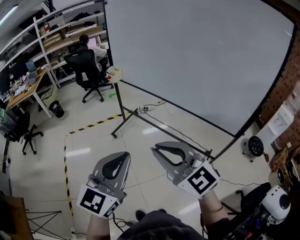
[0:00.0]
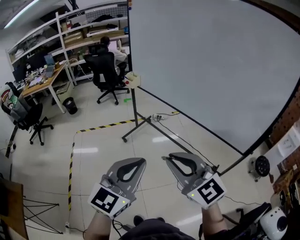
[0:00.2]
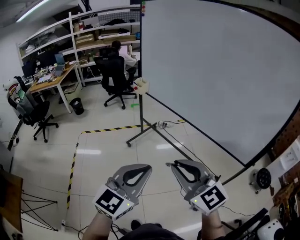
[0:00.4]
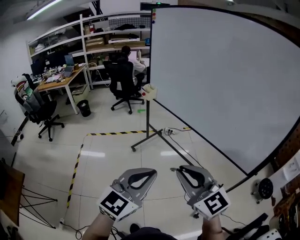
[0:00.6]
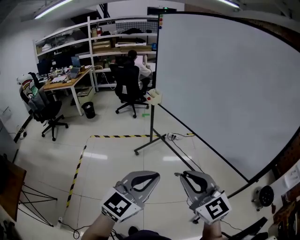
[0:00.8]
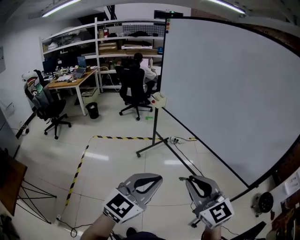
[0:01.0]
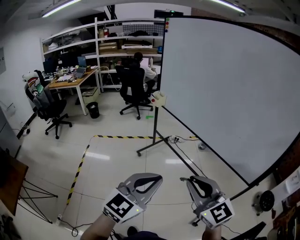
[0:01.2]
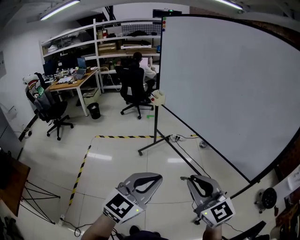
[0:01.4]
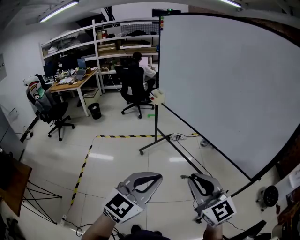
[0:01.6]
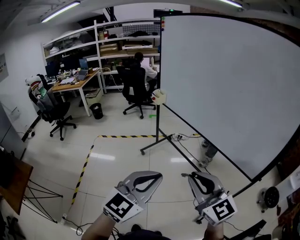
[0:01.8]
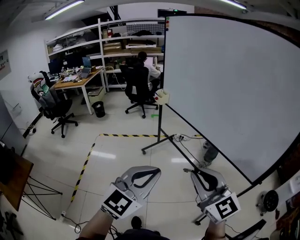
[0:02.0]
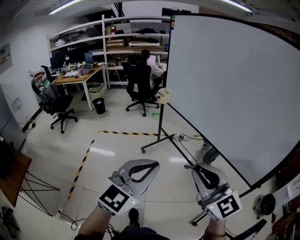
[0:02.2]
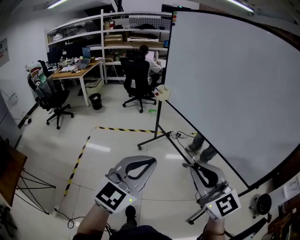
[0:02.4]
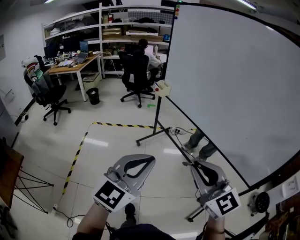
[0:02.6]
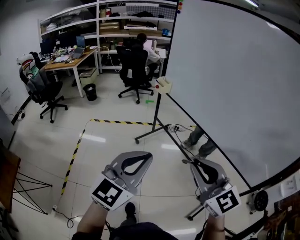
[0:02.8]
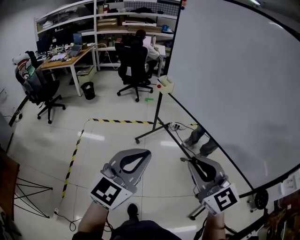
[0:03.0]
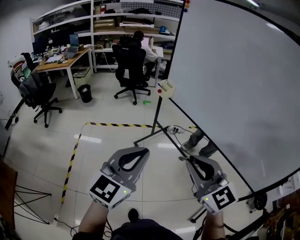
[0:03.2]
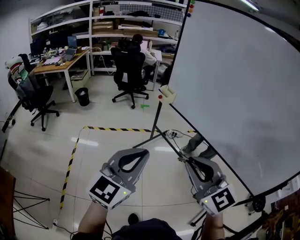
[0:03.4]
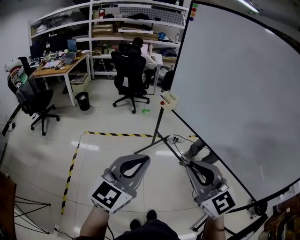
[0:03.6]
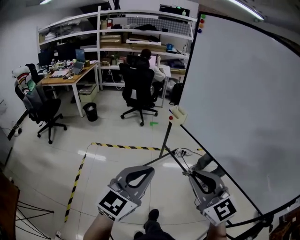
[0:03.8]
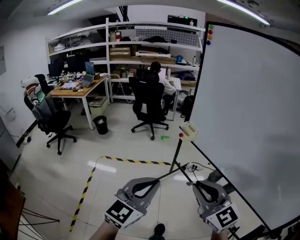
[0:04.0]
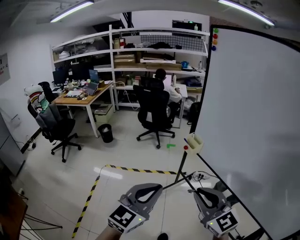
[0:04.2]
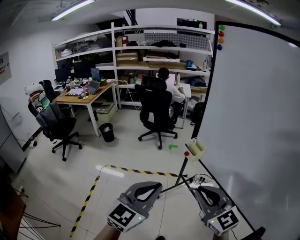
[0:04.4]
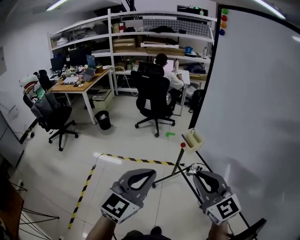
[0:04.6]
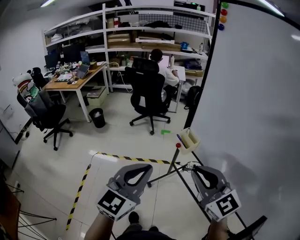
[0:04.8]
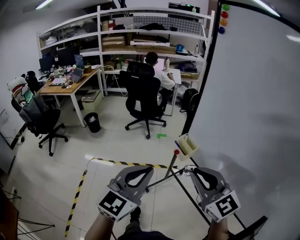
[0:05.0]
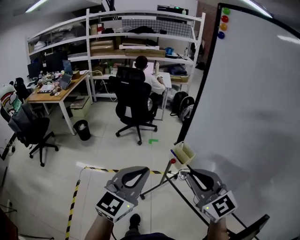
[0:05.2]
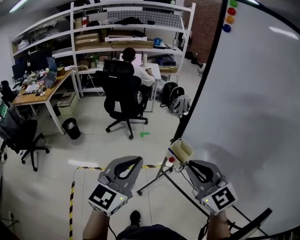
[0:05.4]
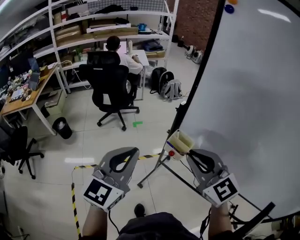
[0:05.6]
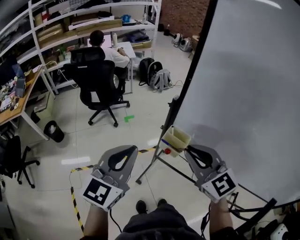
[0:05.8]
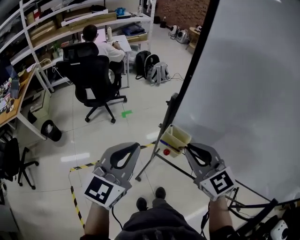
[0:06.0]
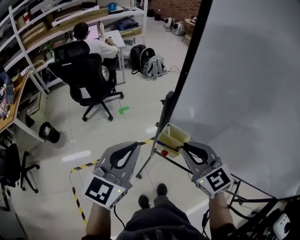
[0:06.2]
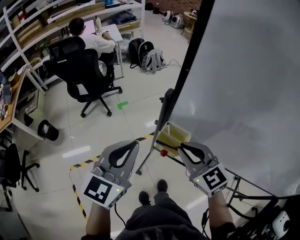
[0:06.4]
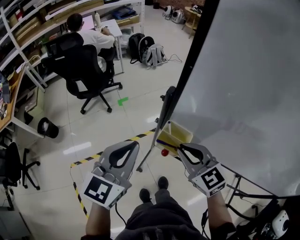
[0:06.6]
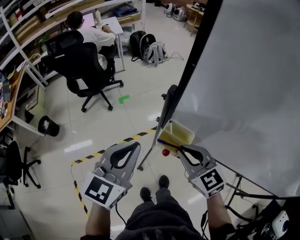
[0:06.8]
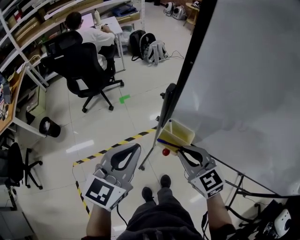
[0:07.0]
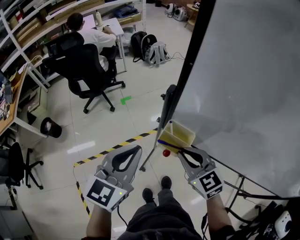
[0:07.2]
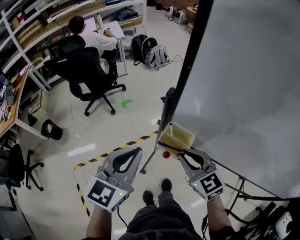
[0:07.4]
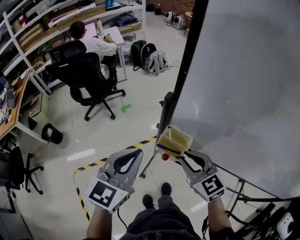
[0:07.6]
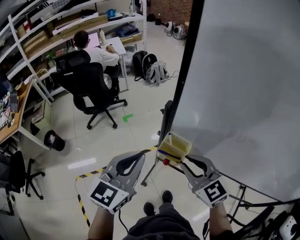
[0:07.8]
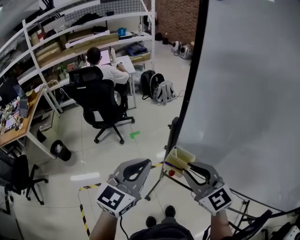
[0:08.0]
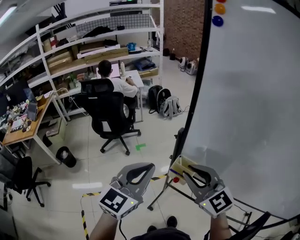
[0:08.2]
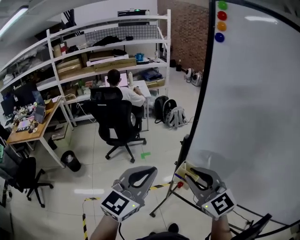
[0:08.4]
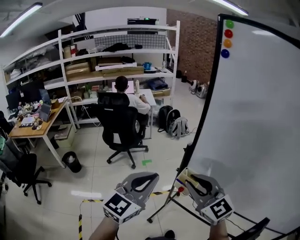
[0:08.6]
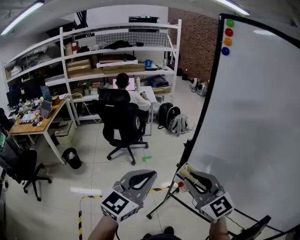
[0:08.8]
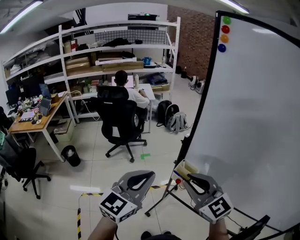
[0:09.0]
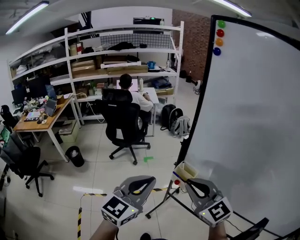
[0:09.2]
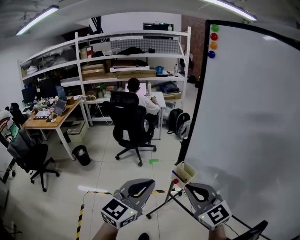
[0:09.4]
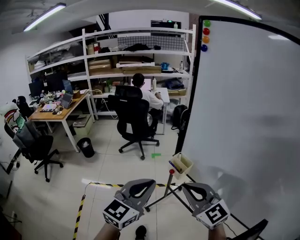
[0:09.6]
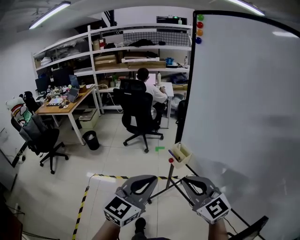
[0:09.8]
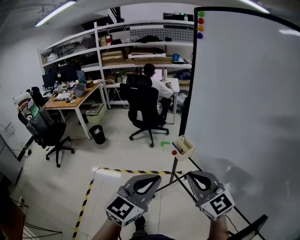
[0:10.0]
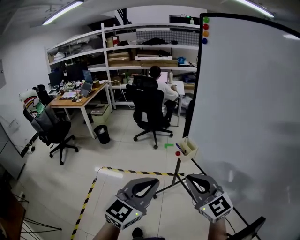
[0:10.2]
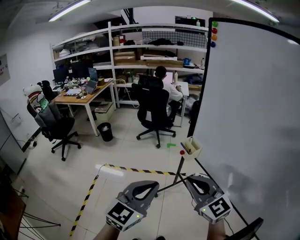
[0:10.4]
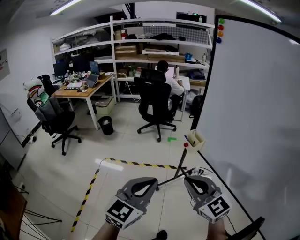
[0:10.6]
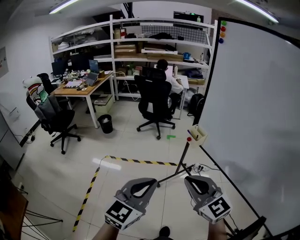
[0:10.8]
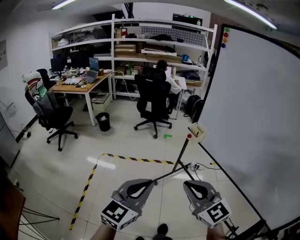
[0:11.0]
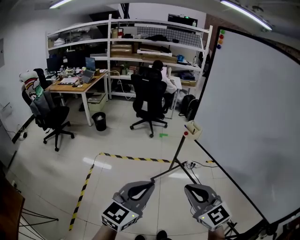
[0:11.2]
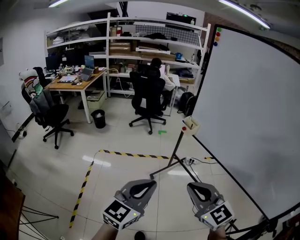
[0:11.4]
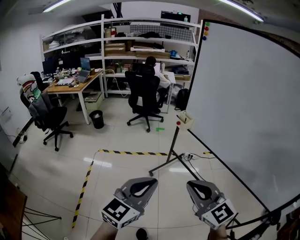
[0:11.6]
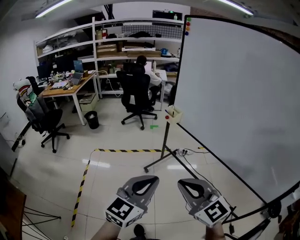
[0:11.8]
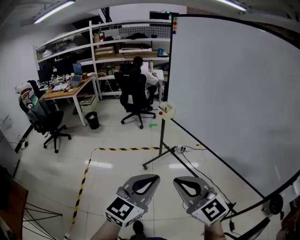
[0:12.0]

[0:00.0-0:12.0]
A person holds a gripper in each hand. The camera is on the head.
0:00.0 to 0:01.6: The left gripper shifts by about 5 cm. The right gripper heads to the right, covering roughly 5 cm.
0:01.6 to 0:03.0: Both grippers move forward and to the left, approximately 20 cm.
0:03.0 to 0:04.4: Both grippers move forward, approximately 35 cm.
0:04.4 to 0:06.0: The grippers both shift forward by some 35 cm. The right gripper rotates some 20 degrees, while the left gripper rotates approximately 20 degrees.
0:06.0 to 0:07.6: The left gripper travels downward by some 5 cm. Meanwhile the right gripper shifts about 10 cm downward.
0:07.6 to 0:09.0: The left gripper goes some 15 cm backward and upward. The right gripper goes some 25 cm upward, backward and to the left, and changes its angle by approximately 30 degrees.
0:09.0 to 0:10.4: Both grippers move backward, roughly 25 cm. The left gripper swivels roughly 20 degrees.
0:10.4 to 0:12.0: Both grippers travel together backward, some 35 cm.

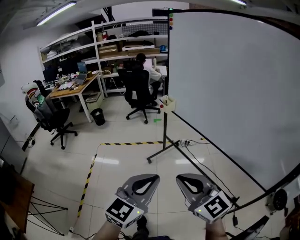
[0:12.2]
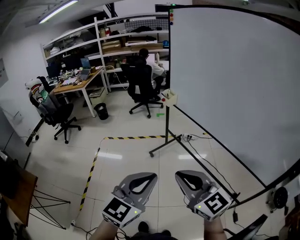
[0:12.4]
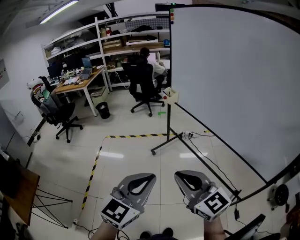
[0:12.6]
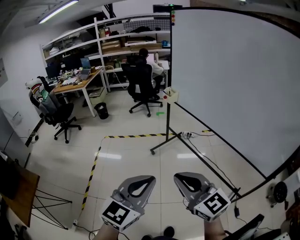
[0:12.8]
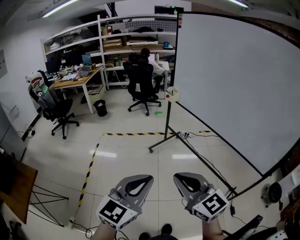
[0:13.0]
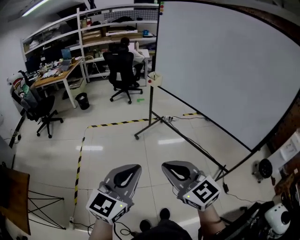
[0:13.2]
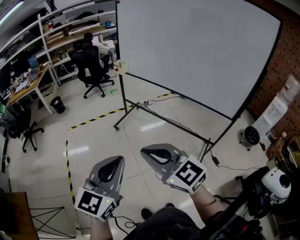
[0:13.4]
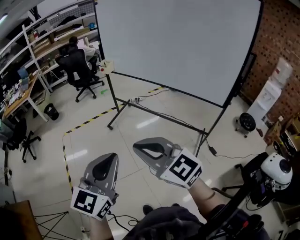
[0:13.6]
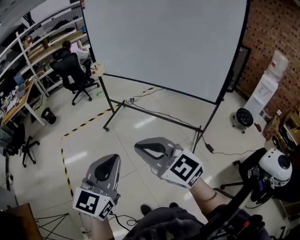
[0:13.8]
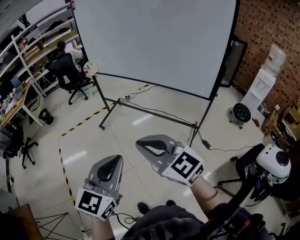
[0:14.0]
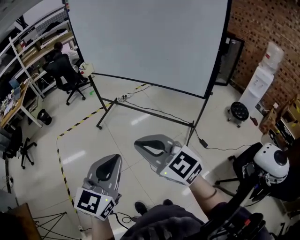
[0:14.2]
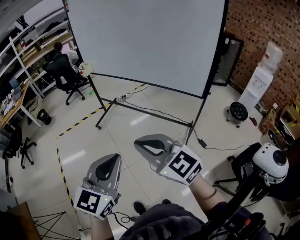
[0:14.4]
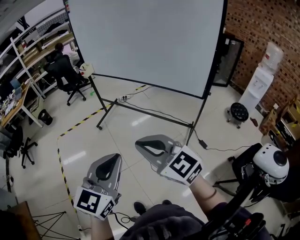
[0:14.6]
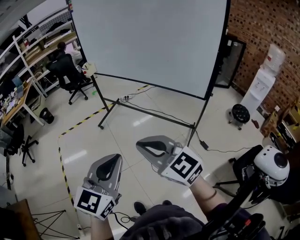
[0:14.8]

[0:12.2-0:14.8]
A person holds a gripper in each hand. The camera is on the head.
0:12.2 to 0:13.4: The two grippers go some 20 cm backward and to the left.
0:13.4 to 0:14.8: Both grippers move to the right, some 20 cm.

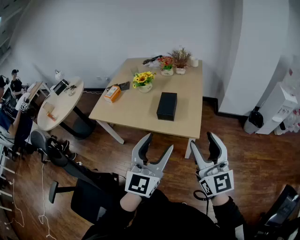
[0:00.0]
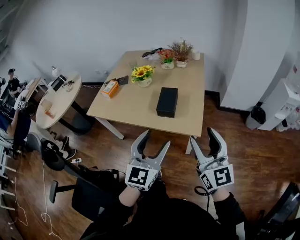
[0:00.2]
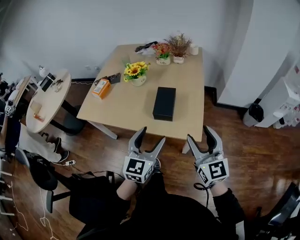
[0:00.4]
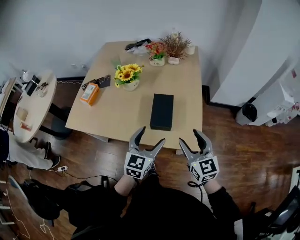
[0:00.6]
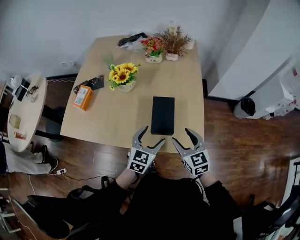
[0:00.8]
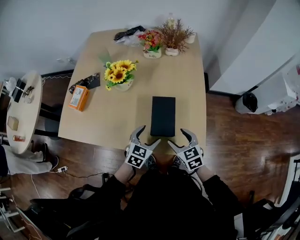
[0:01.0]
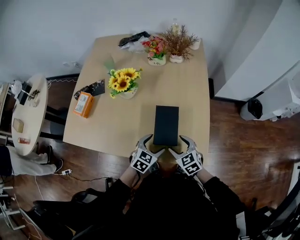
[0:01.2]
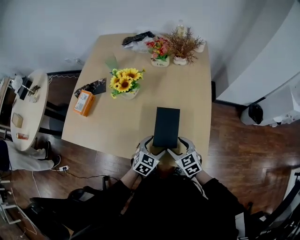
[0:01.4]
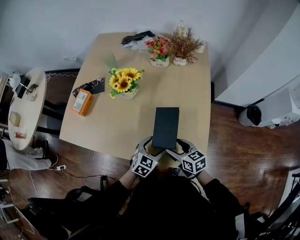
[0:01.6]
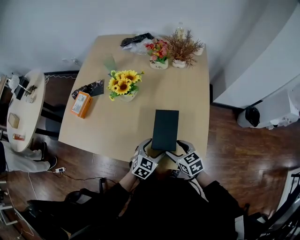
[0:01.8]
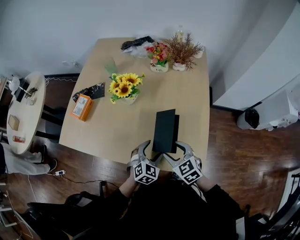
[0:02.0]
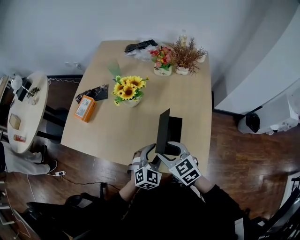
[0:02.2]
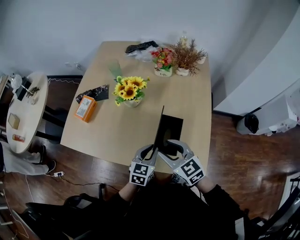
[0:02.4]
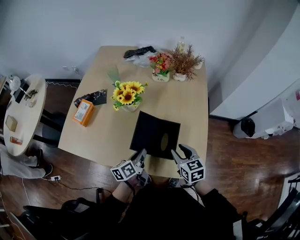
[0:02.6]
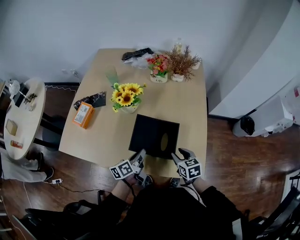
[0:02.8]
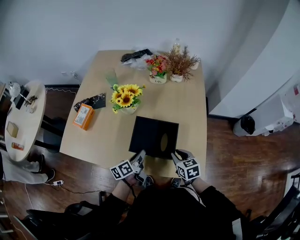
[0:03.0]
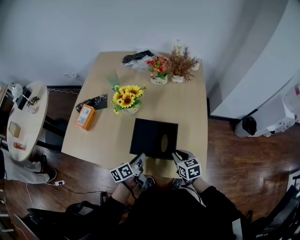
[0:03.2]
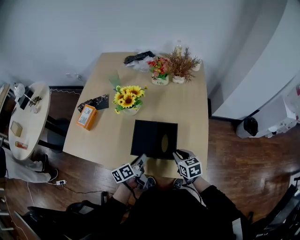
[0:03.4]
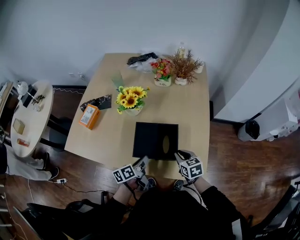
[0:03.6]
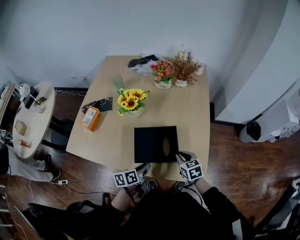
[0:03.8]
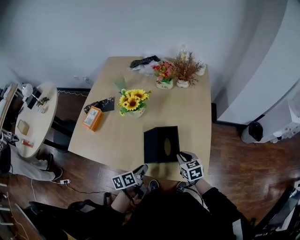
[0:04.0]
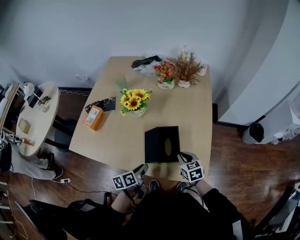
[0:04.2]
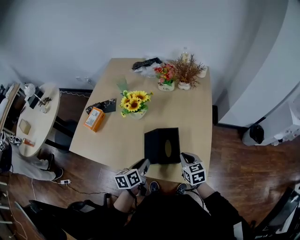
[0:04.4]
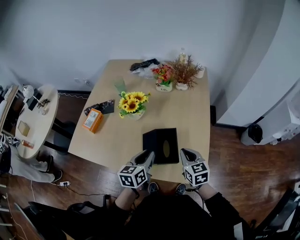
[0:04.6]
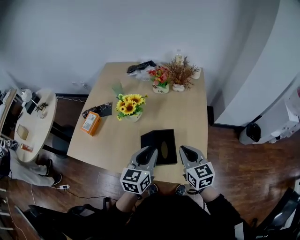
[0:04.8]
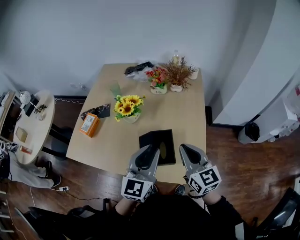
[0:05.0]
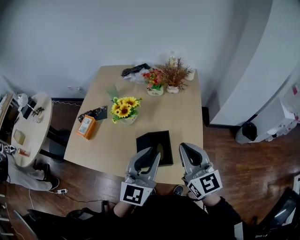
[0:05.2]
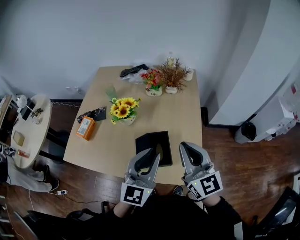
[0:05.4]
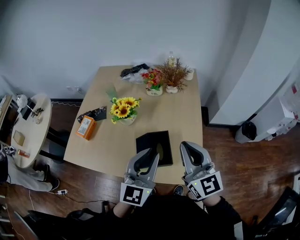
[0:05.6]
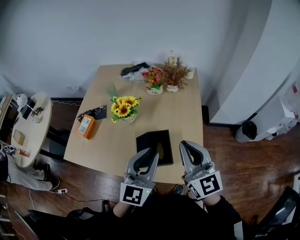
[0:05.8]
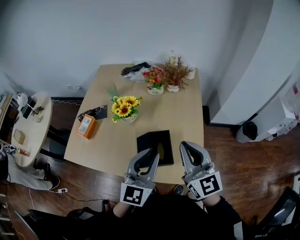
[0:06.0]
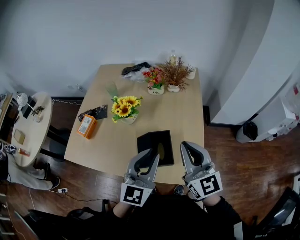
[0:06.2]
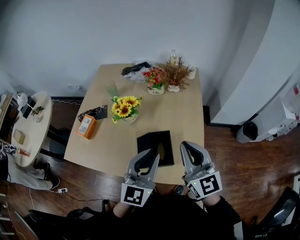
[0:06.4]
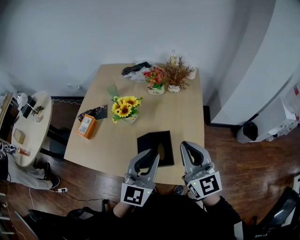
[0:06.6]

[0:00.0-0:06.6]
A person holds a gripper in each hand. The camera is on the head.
0:00.0 to 0:01.6: Both grippers move forward and downward, about 50 cm. The right gripper angles its fingers downward, by some 50 degrees. The left gripper points its fingers approximately 40 degrees further downward.
0:01.6 to 0:03.2: The right gripper goes upward and returns, roughly 10 cm each way, and closes its fingers. The left gripper travels to the left by roughly 10 cm, rotates around the line of its fingers by some 70 degrees, counterclockwise from behind, and closes up.
0:03.2 to 0:05.0: The grippers both shift upward by some 25 cm. The left gripper twists approximately 60 degrees clockwise, seen from behind. Meanwhile the right gripper tips its fingers upward by about 40 degrees.
0:05.0 to 0:06.6: The right gripper heads upward, covering some 5 cm.

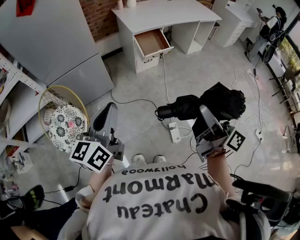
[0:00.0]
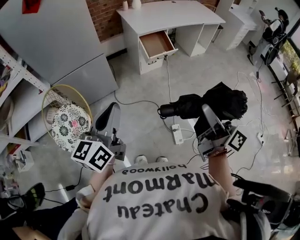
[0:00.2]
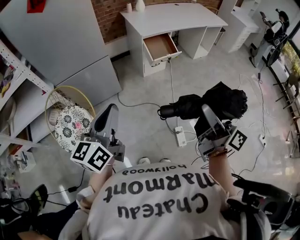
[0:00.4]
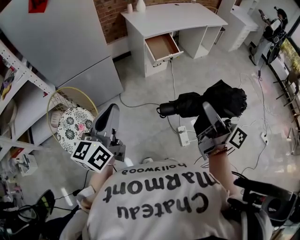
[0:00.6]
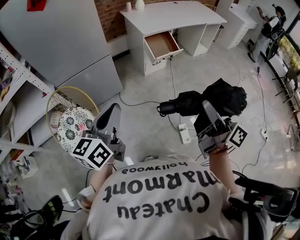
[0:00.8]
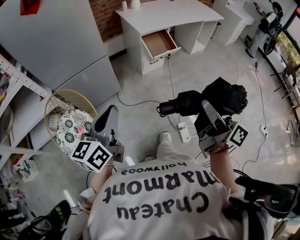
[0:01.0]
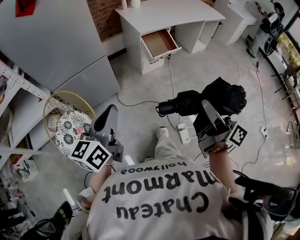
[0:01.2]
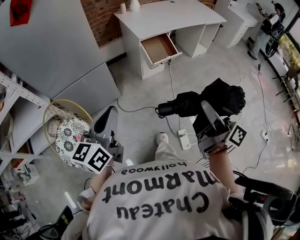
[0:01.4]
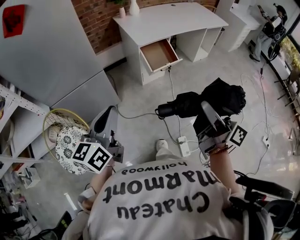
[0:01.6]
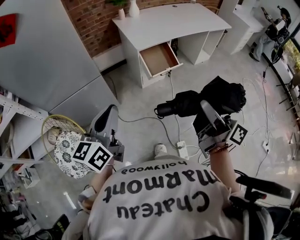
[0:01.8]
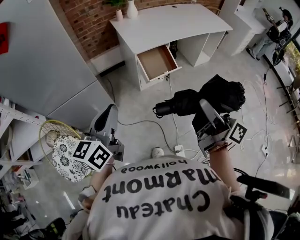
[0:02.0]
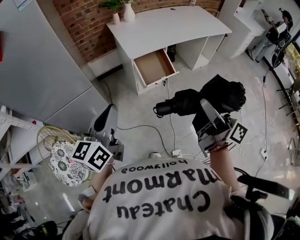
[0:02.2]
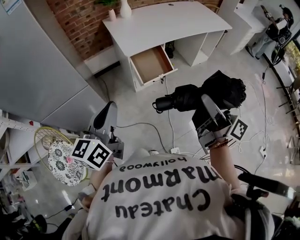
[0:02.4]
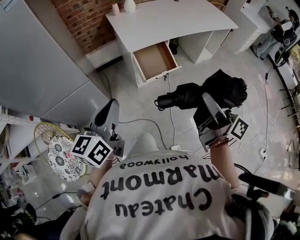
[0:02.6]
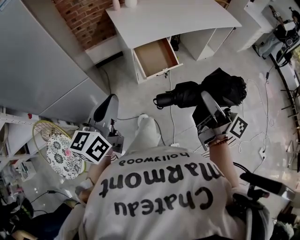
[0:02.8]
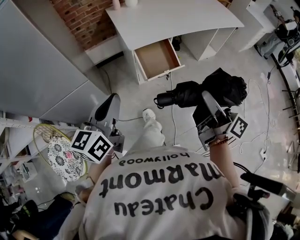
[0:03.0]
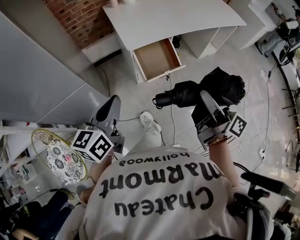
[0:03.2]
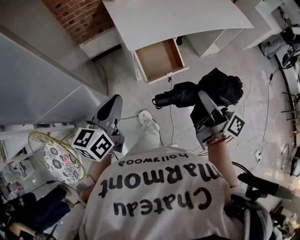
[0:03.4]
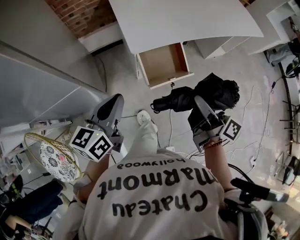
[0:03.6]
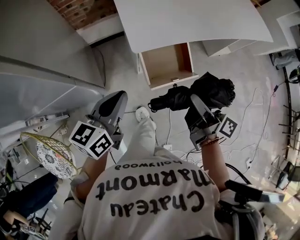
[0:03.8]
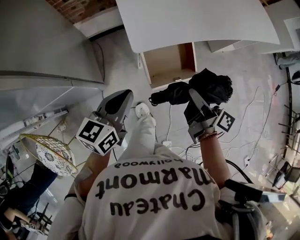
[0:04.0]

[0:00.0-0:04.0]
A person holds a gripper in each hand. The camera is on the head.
0:00.0 to 0:01.4: The left gripper shifts by roughly 10 cm.
0:01.4 to 0:02.6: The left gripper moves some 25 cm.
0:02.6 to 0:04.0: The left gripper moves about 30 cm.
